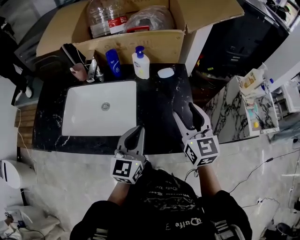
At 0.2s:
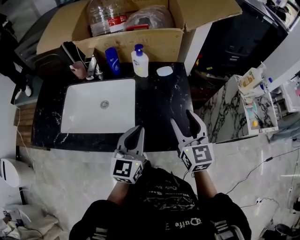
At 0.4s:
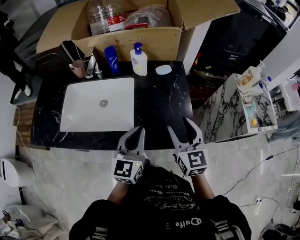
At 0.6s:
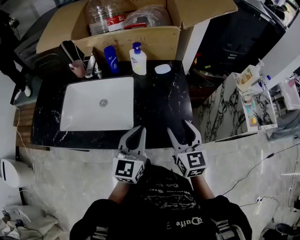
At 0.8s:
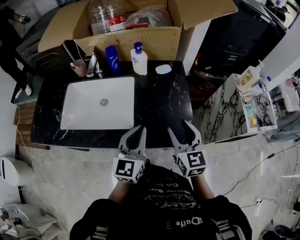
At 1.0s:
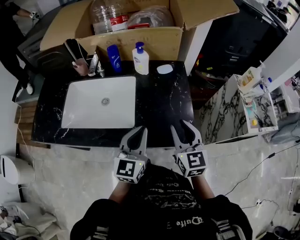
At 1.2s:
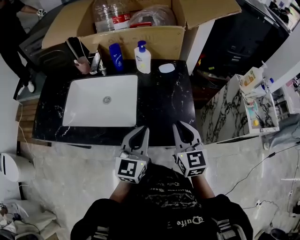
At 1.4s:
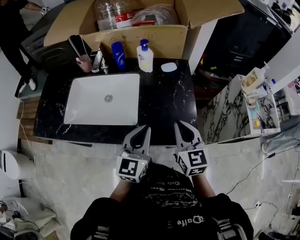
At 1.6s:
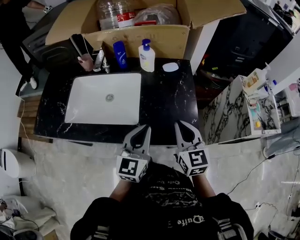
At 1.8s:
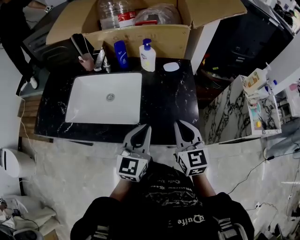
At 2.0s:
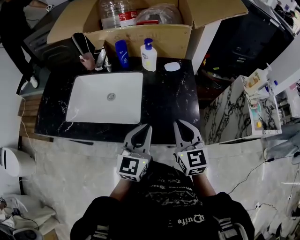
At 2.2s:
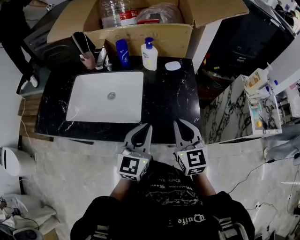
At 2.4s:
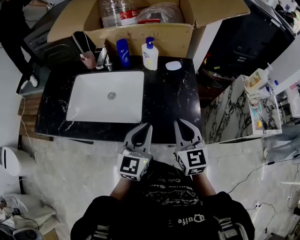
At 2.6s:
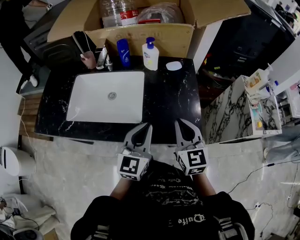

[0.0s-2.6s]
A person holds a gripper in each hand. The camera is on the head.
0.0s to 1.2s: The right gripper moves backward and downward, some 10 cm, and closes.
1.2s to 2.6s: The grippers move only a little.

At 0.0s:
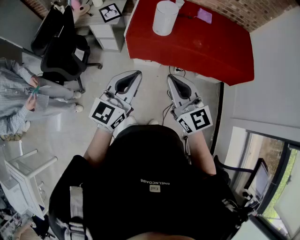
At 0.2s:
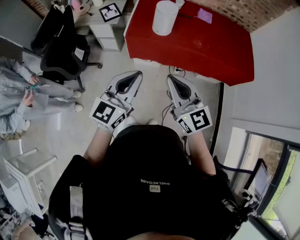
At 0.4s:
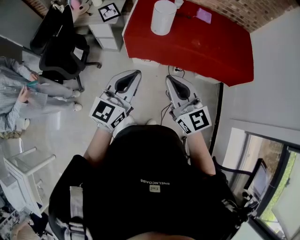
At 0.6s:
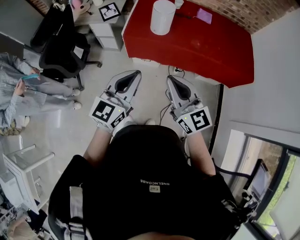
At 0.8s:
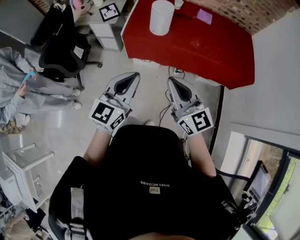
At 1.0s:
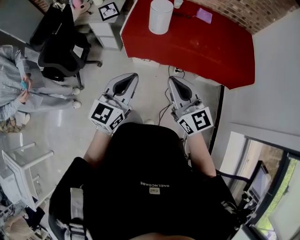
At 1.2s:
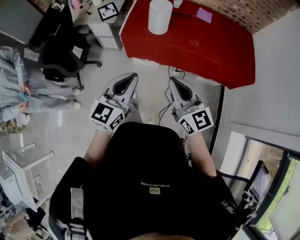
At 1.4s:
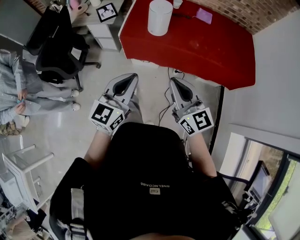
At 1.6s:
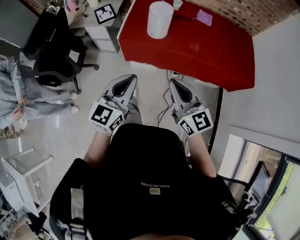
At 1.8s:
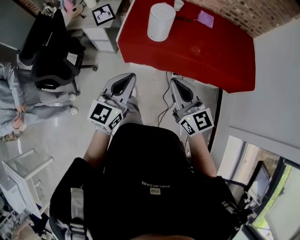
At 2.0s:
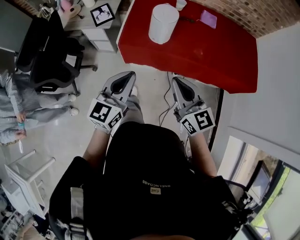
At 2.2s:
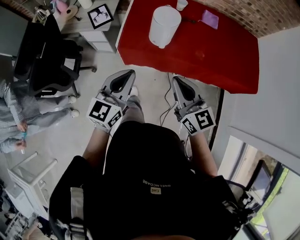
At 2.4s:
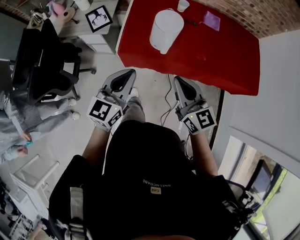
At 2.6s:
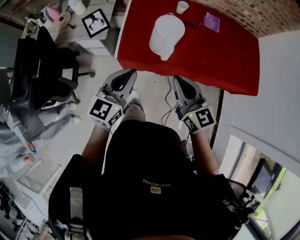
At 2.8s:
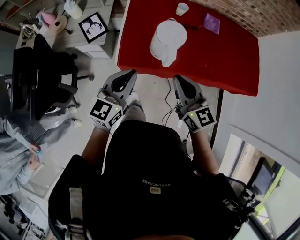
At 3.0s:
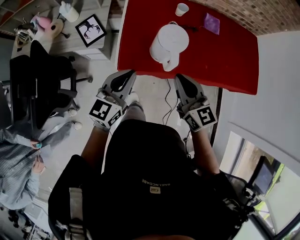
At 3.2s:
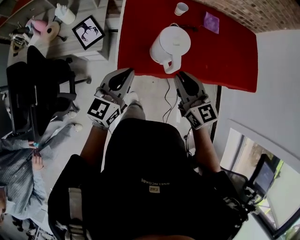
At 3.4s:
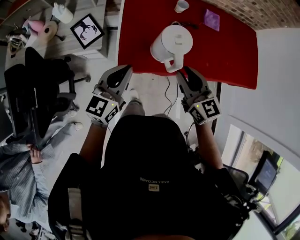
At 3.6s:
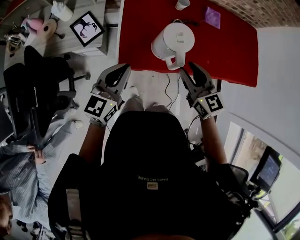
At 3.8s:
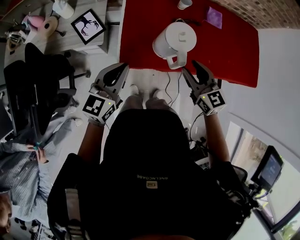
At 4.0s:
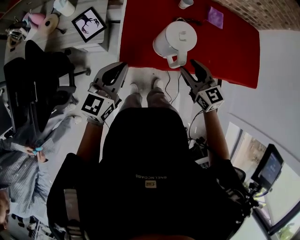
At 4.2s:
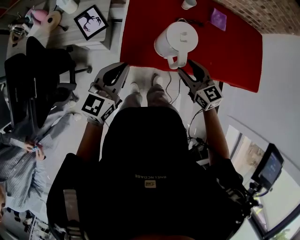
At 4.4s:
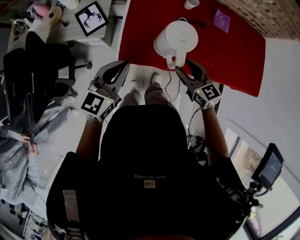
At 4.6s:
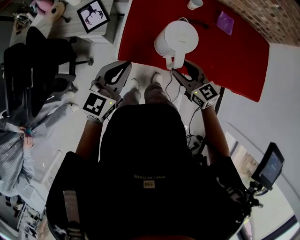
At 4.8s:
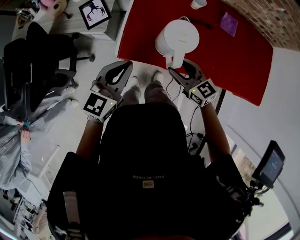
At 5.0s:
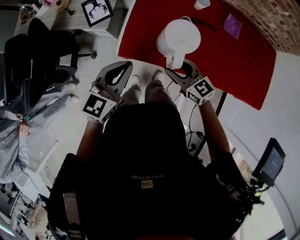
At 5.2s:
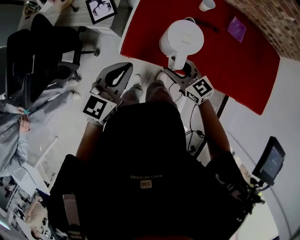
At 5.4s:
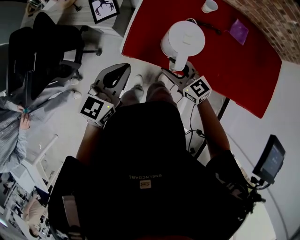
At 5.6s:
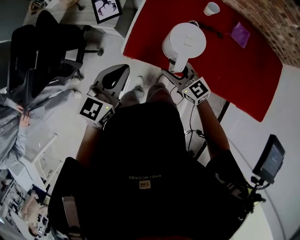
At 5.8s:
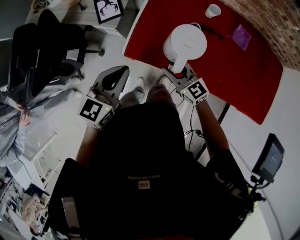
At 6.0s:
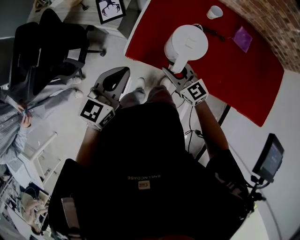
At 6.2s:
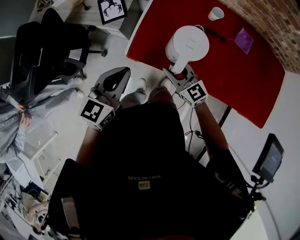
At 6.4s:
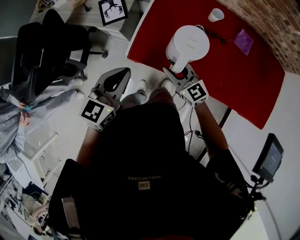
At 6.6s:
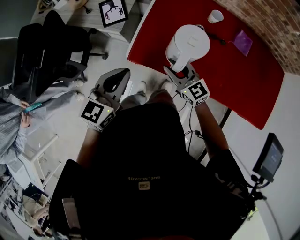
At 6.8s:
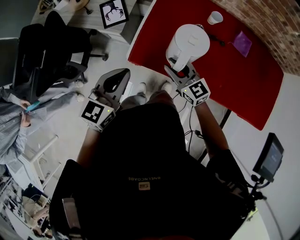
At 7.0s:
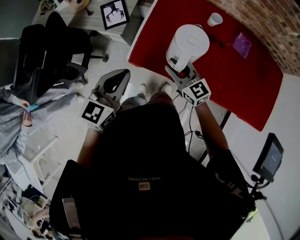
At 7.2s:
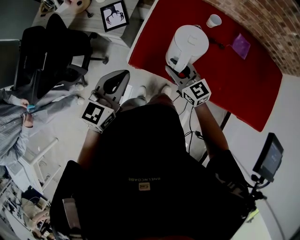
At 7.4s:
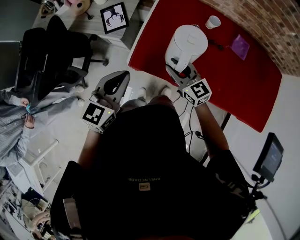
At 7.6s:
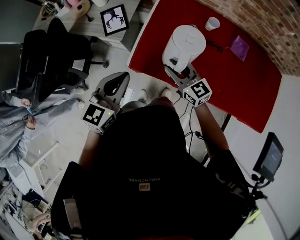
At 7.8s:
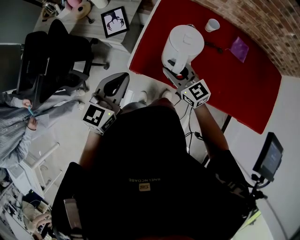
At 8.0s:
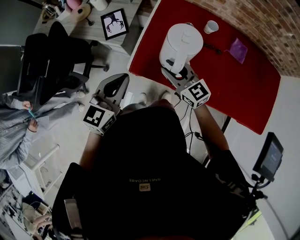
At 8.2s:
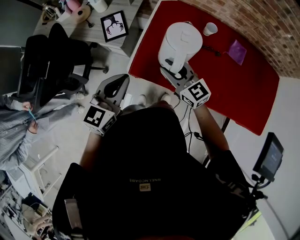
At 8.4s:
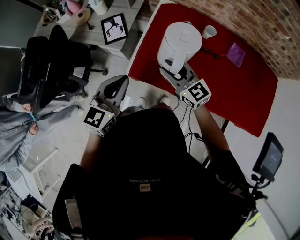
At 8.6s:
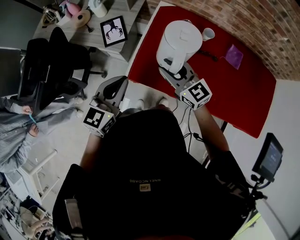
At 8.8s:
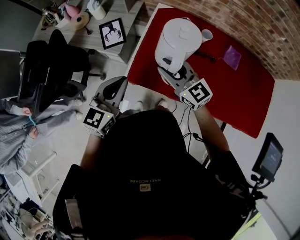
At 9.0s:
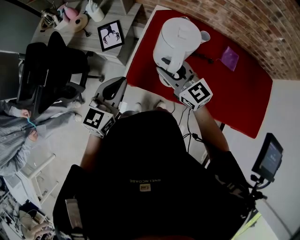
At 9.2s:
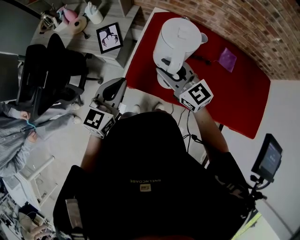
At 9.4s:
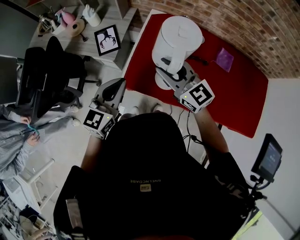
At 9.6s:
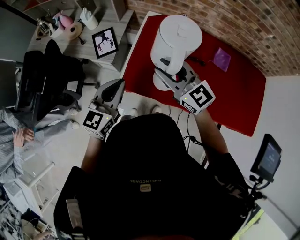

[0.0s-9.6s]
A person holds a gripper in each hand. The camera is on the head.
0.0s to 1.6s: The right gripper is displaced to the right by roughly 5 cm; the left gripper ends up roughly 10 cm from where it was.
1.6s to 3.2s: The two grippers go some 35 cm forward.
3.2s to 4.8s: The right gripper heads downward, covering some 10 cm, turns by some 30 degrees, and opens its fingers.
4.8s to 6.4s: The right gripper changes place by about 5 cm, and closes its fingers.
6.4s to 8.0s: The right gripper shifts roughly 5 cm upward.
8.0s to 9.6s: The right gripper heads upward, covering roughly 15 cm.

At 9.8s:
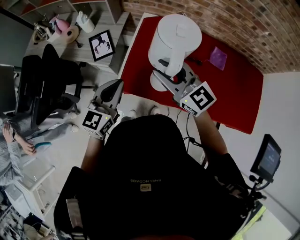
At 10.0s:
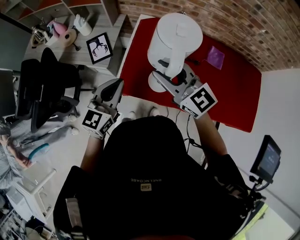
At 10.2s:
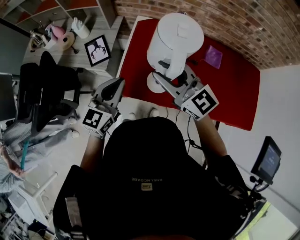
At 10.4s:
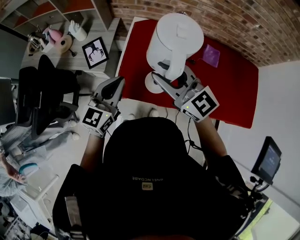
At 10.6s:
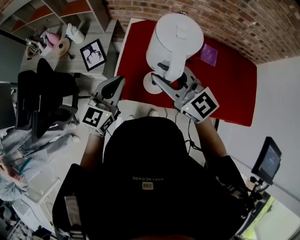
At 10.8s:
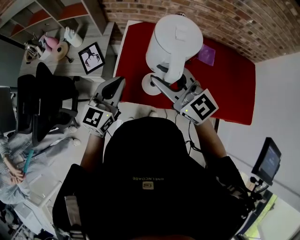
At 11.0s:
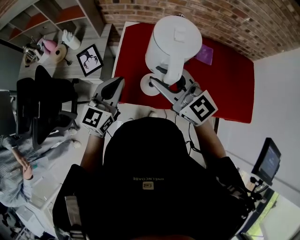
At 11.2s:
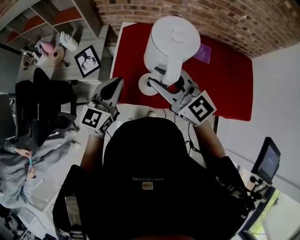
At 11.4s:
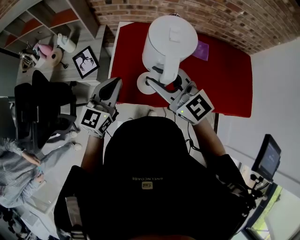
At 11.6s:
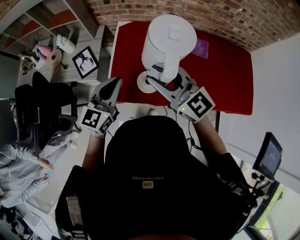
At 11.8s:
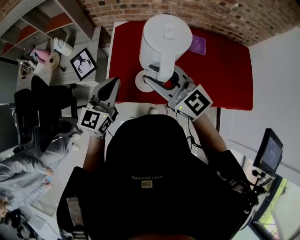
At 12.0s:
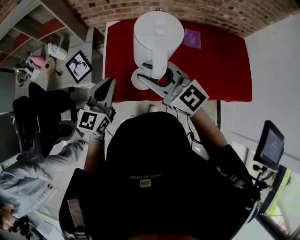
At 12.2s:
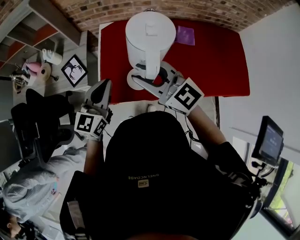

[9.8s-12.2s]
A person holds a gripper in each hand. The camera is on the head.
9.8s to 11.0s: The right gripper changes place by about 5 cm. The left gripper moves to the right, some 5 cm.
11.0s to 12.2s: The grippers stay close to where they were, moving slightly.

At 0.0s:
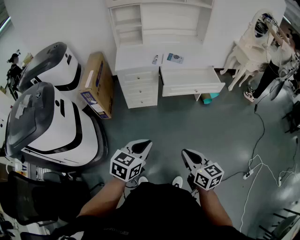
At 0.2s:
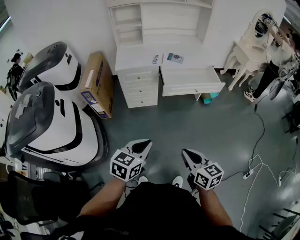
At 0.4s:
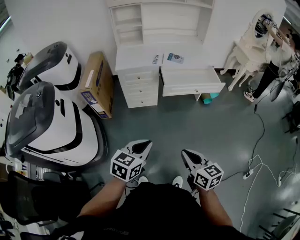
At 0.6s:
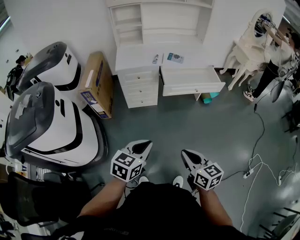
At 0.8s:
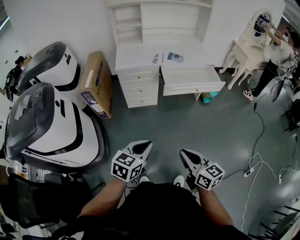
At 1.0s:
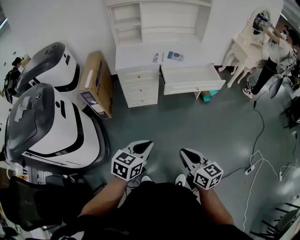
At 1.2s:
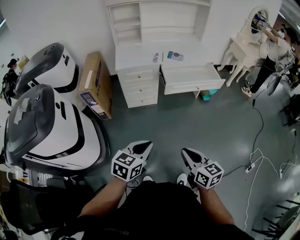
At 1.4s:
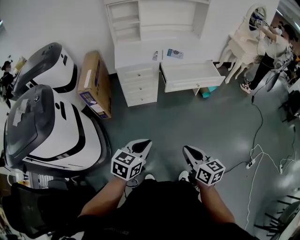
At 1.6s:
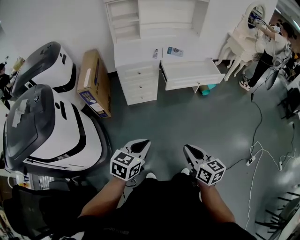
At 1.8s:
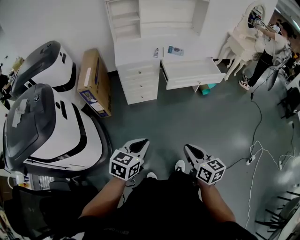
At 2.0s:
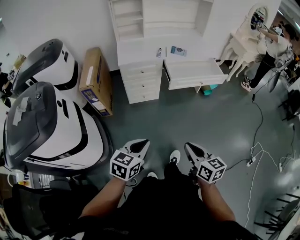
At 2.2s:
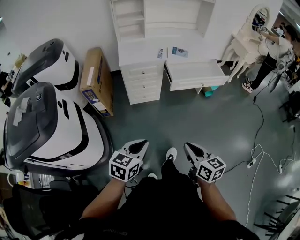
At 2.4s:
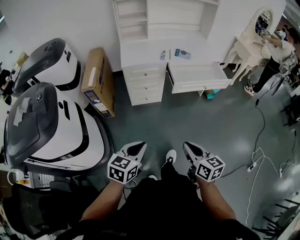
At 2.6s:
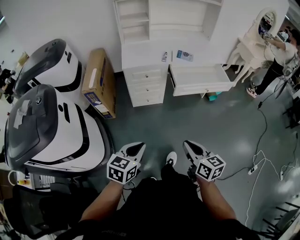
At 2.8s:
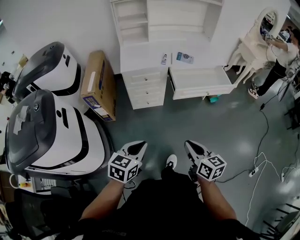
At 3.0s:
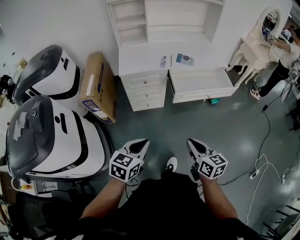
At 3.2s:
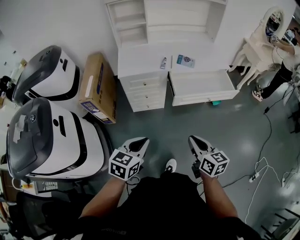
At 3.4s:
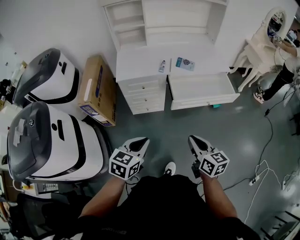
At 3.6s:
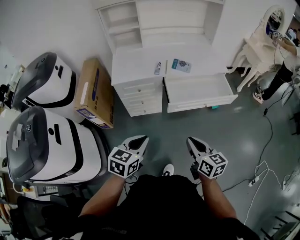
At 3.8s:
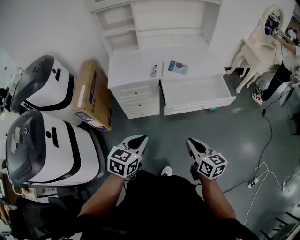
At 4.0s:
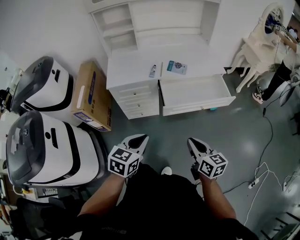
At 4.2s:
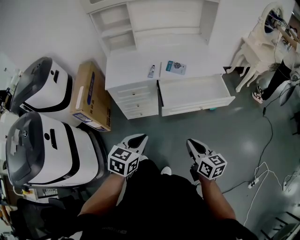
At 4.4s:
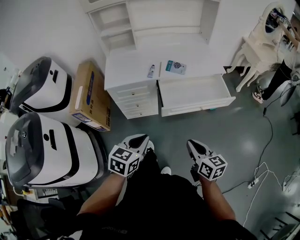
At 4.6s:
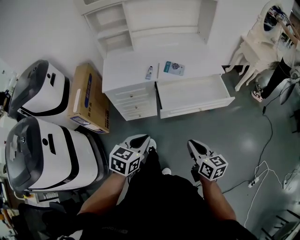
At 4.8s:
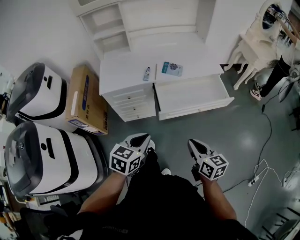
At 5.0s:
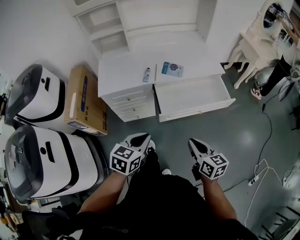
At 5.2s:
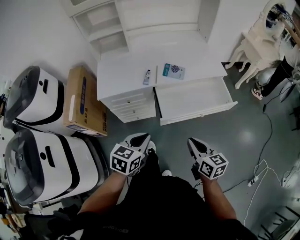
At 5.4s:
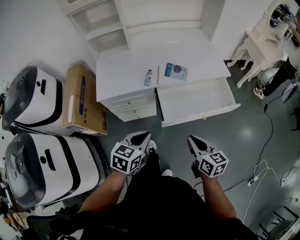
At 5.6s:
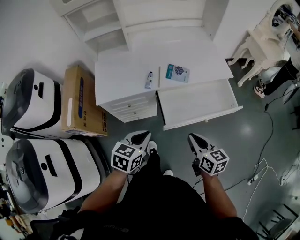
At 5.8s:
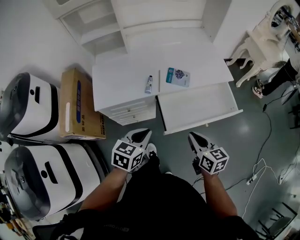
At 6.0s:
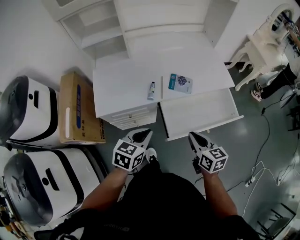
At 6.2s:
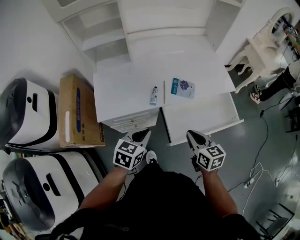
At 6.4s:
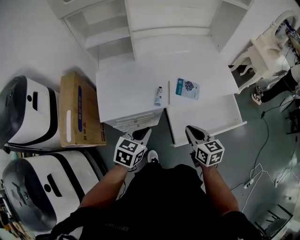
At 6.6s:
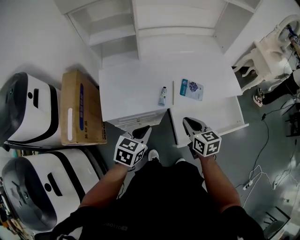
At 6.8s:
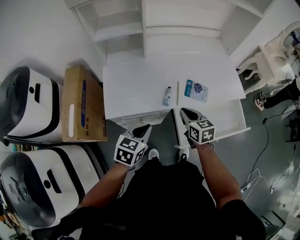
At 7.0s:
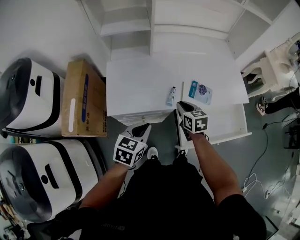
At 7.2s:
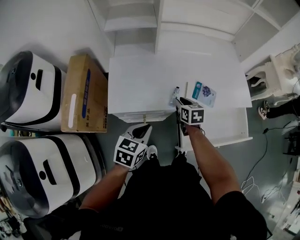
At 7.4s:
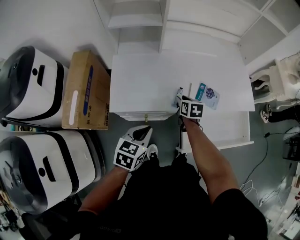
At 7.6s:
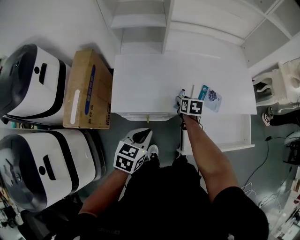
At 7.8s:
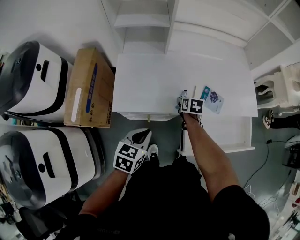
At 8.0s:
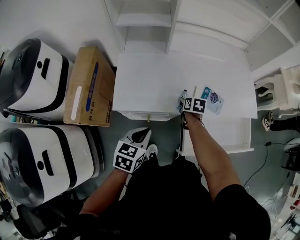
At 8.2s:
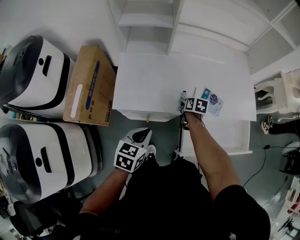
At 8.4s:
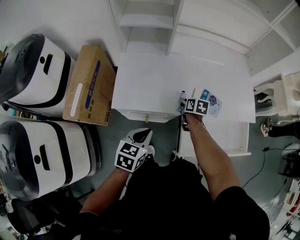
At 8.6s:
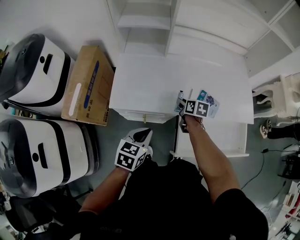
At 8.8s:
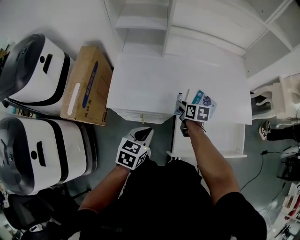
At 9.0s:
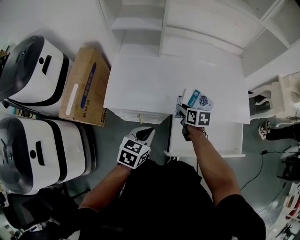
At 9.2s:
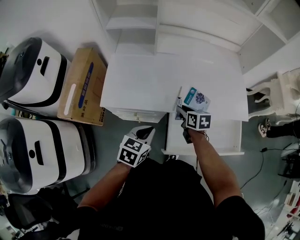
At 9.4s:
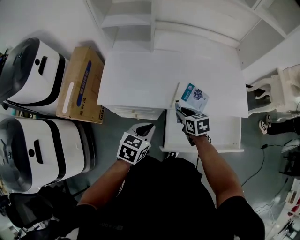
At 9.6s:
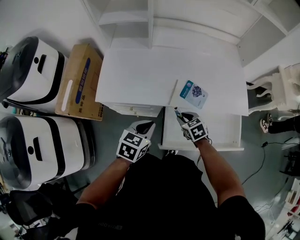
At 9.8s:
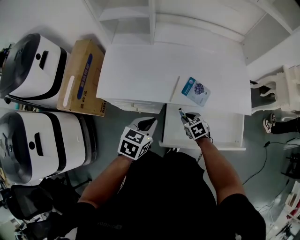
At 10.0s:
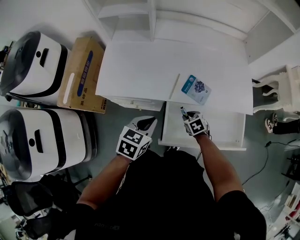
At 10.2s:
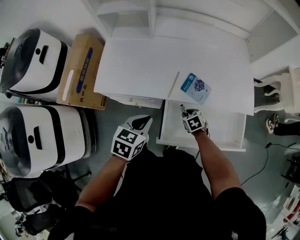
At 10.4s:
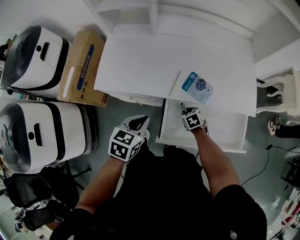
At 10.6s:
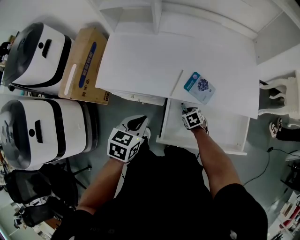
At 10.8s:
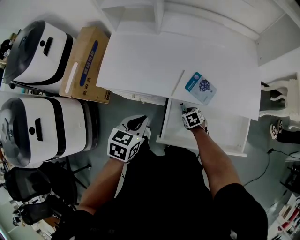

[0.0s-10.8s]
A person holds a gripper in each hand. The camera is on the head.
0.0s to 1.6s: Both grippers travel together to the left, approximately 10 cm.
1.6s to 3.0s: The grippers both shift forward by roughly 15 cm.
3.0s to 4.6s: Both grippers move forward and to the right, about 20 cm.
4.6s to 6.2s: The two grippers go some 25 cm forward.
6.2s to 7.8s: The right gripper heads forward, downward and to the left, covering roughly 35 cm, changes its angle by roughly 20 degrees, and opens, while the left gripper travels to the left by some 10 cm.
7.8s to 9.2s: The right gripper travels upward, to the right and backward by roughly 10 cm. The left gripper travels to the right by about 10 cm.
9.2s to 10.8s: The right gripper shifts approximately 20 cm downward, and swivels roughly 40 degrees.
